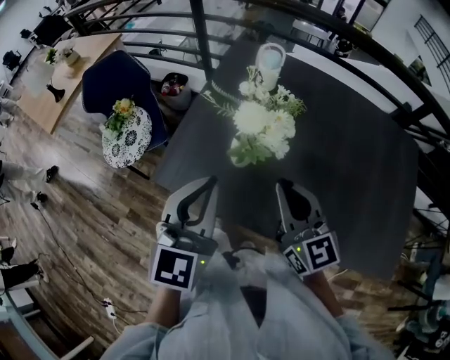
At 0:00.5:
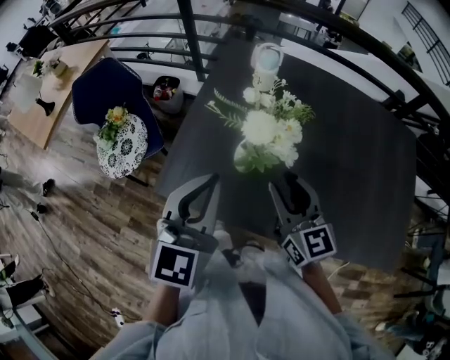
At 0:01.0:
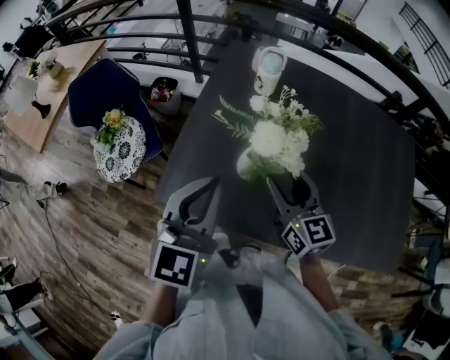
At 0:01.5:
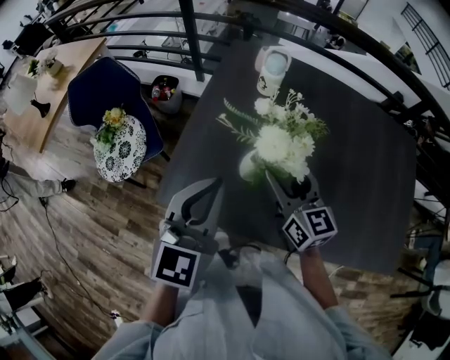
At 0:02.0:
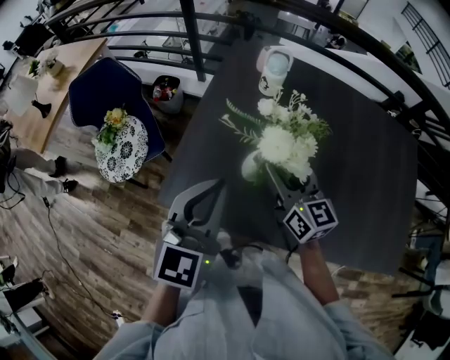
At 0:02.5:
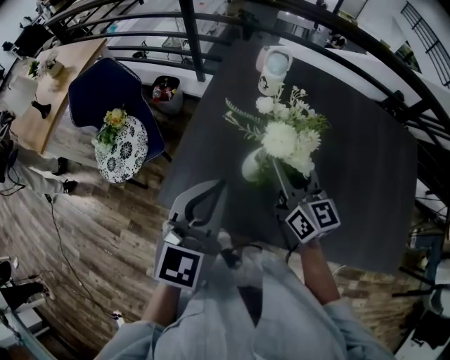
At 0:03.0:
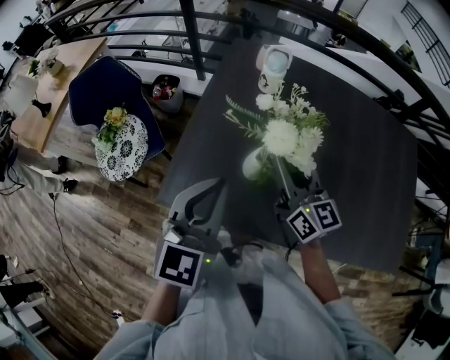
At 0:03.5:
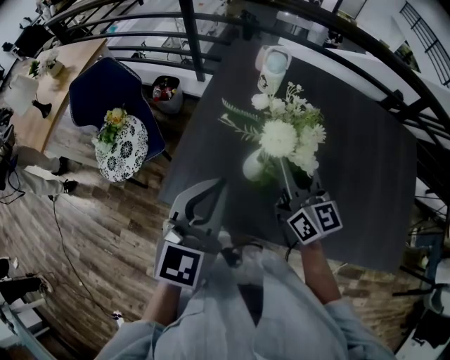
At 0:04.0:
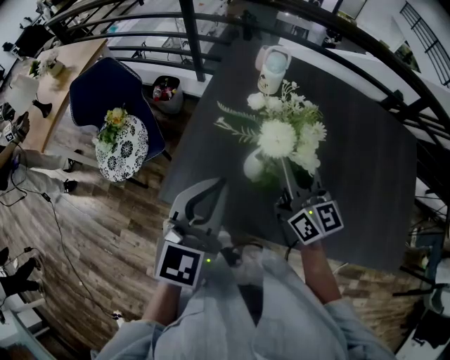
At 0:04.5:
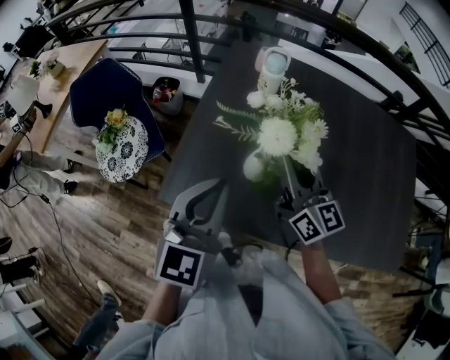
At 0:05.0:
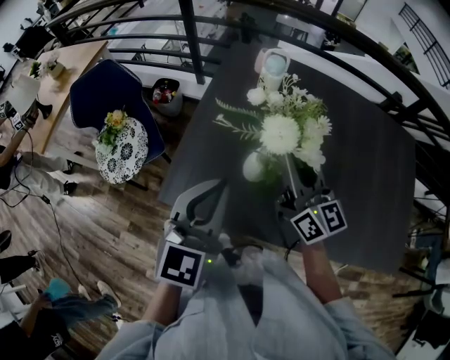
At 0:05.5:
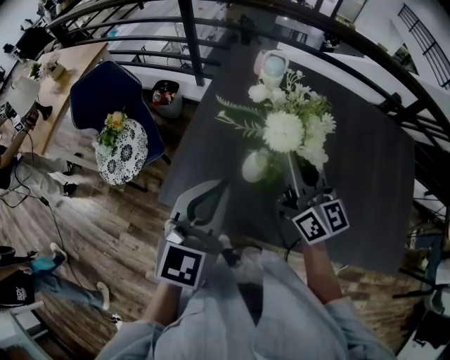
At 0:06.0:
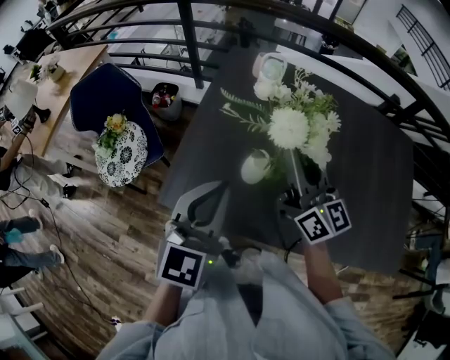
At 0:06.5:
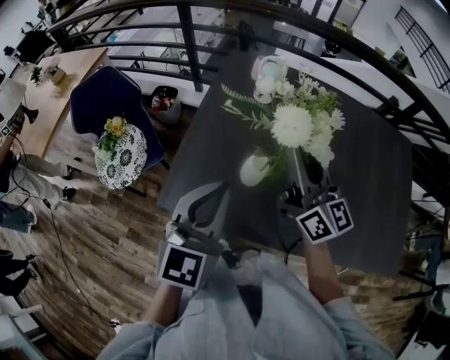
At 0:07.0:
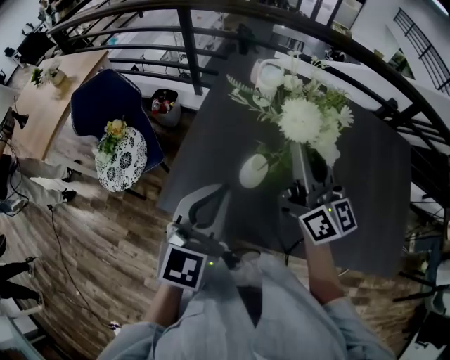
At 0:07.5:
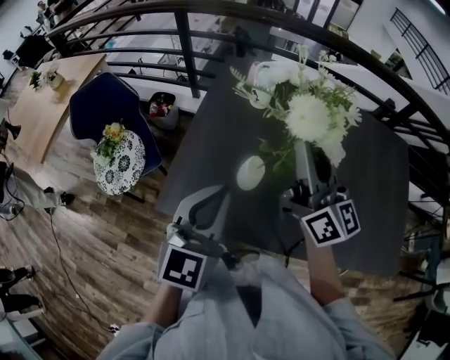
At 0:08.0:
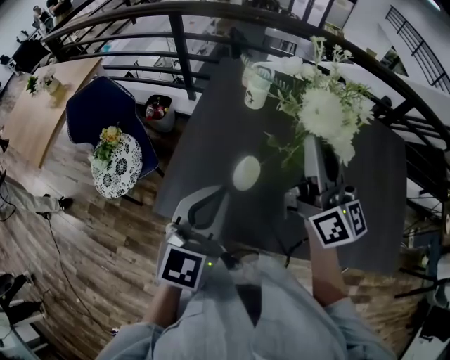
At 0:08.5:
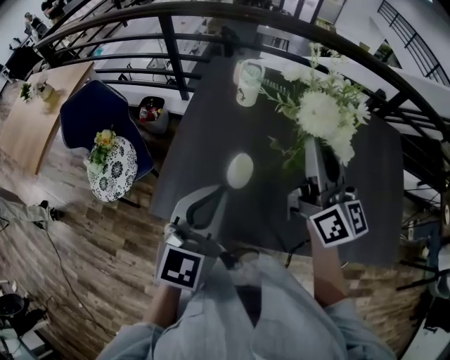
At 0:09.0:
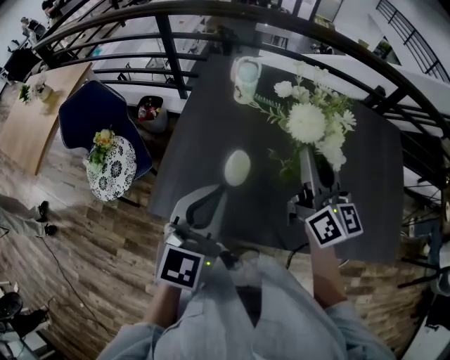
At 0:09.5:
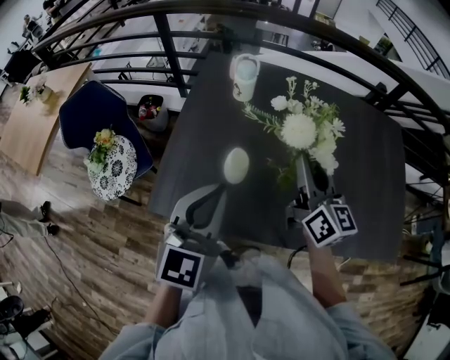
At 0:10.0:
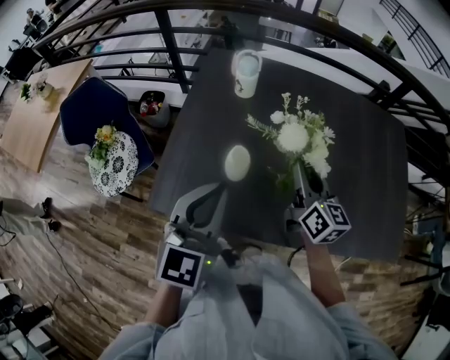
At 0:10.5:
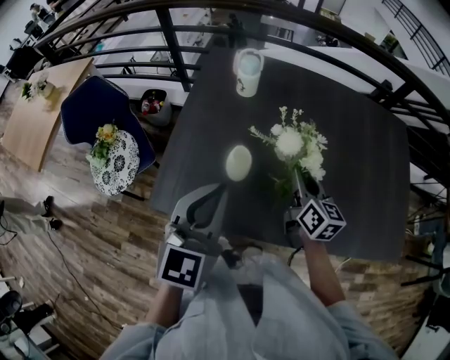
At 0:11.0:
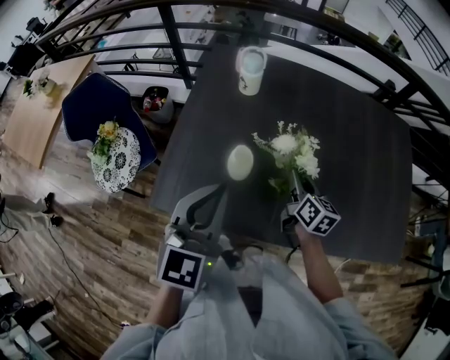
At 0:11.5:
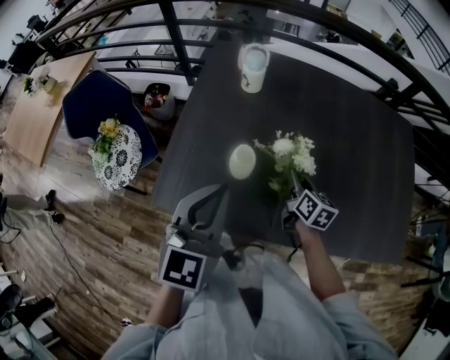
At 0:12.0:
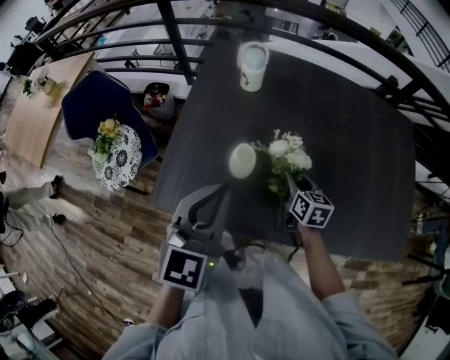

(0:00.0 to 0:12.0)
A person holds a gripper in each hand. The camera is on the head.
0:00.0 - 0:02.0: The left gripper is displaced forward by approximately 5 cm. The right gripper heads forward and downward, covering about 10 cm, and opens its fingers.
0:02.0 - 0:04.0: The right gripper closes its fingers.
0:04.0 - 0:06.0: The grippers make only small movements.
0:06.0 - 0:08.0: The right gripper shifts roughly 10 cm upward.
0:08.0 - 0:10.0: The right gripper is displaced downward and to the right by some 20 cm, and rotates approximately 30 degrees.
0:10.0 - 0:12.0: The right gripper travels downward by about 15 cm, and turns by about 30 degrees.

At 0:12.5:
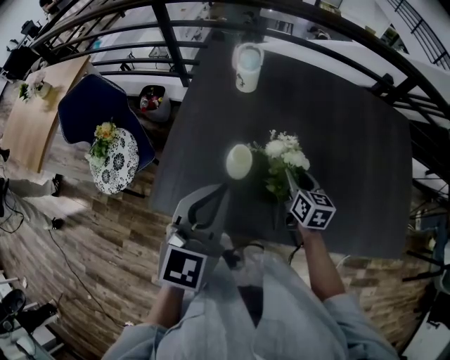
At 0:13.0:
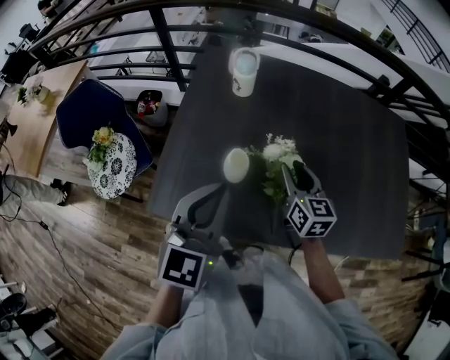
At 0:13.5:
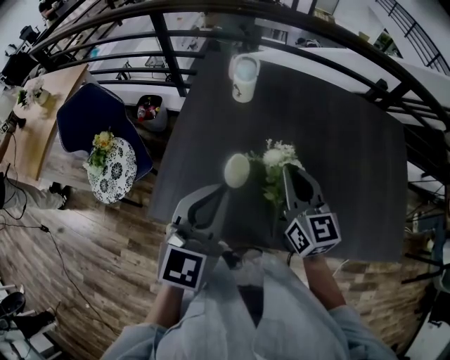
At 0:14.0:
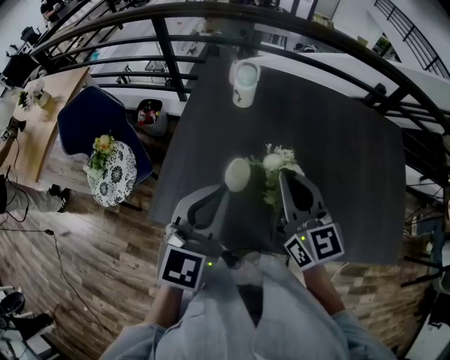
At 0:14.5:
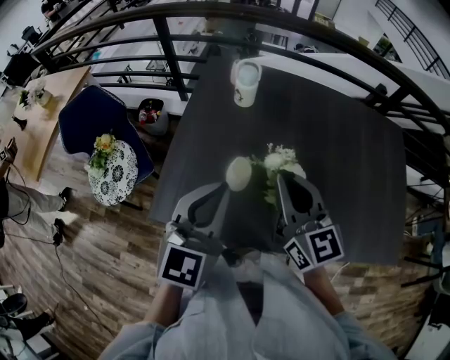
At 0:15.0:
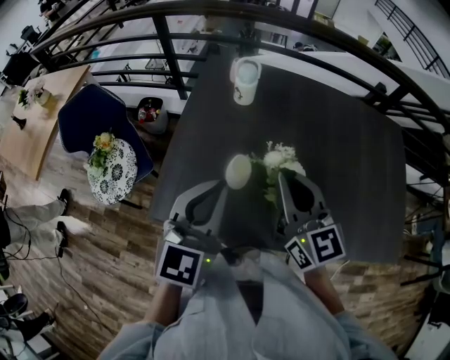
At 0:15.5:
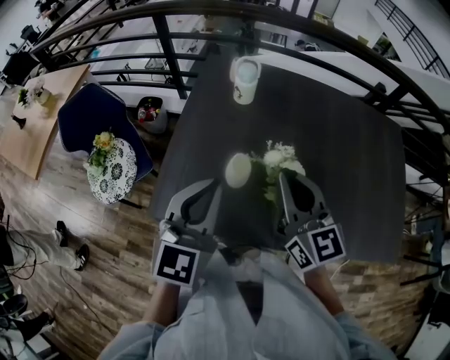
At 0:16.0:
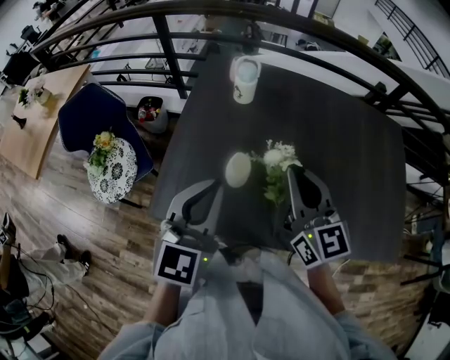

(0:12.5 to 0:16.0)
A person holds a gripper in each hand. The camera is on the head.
0:12.5 - 0:14.5: The right gripper is displaced upward and to the left by approximately 25 cm, changes its angle by approximately 30 degrees, and closes its fingers.
0:14.5 - 0:16.0: There are only small adjustments of the grippers.

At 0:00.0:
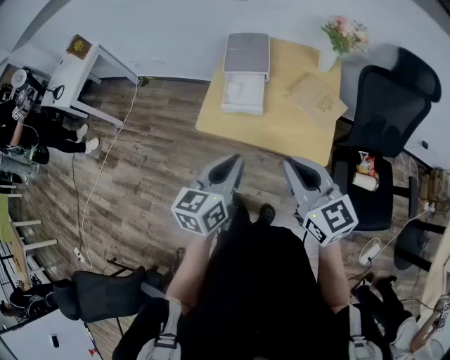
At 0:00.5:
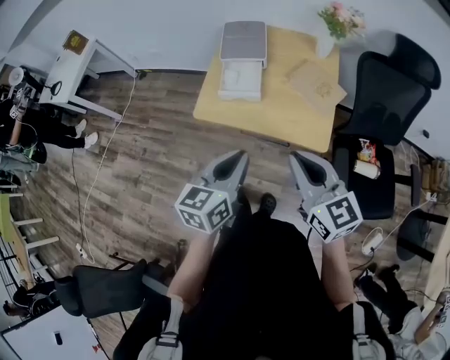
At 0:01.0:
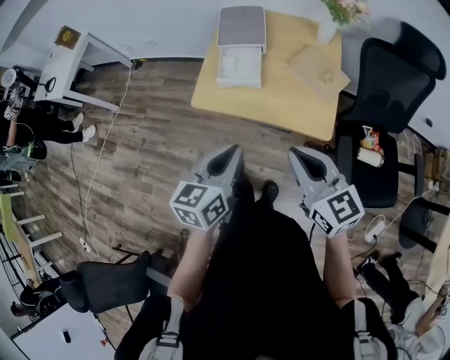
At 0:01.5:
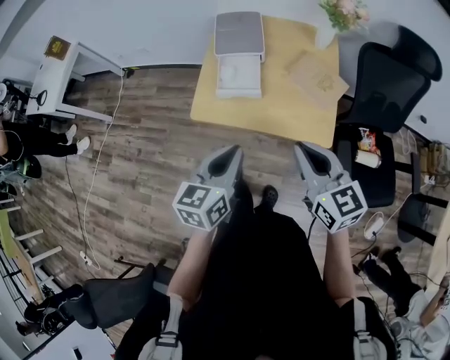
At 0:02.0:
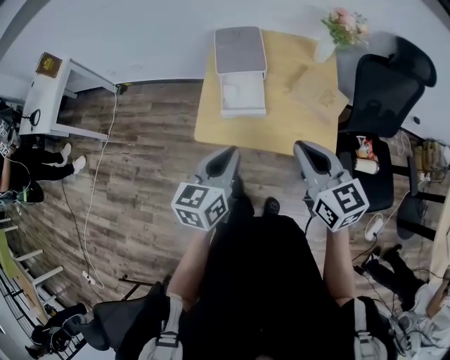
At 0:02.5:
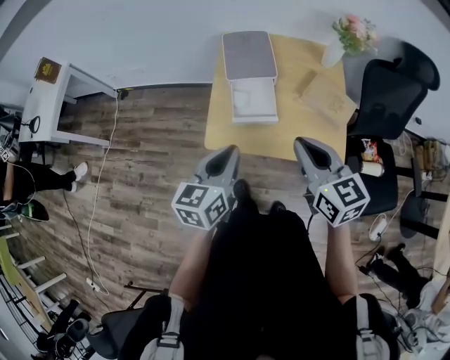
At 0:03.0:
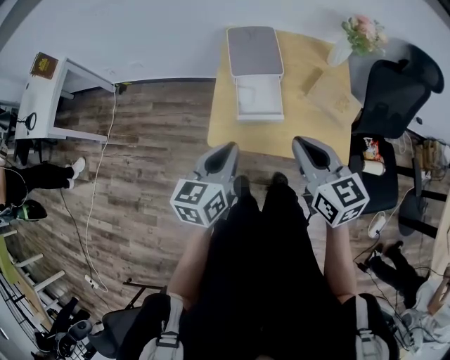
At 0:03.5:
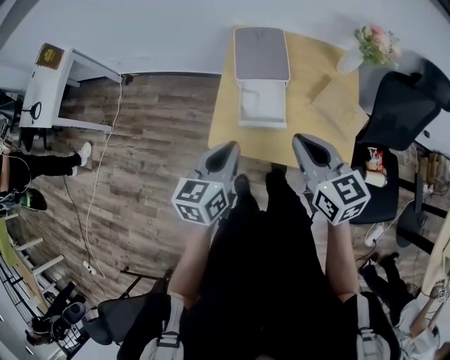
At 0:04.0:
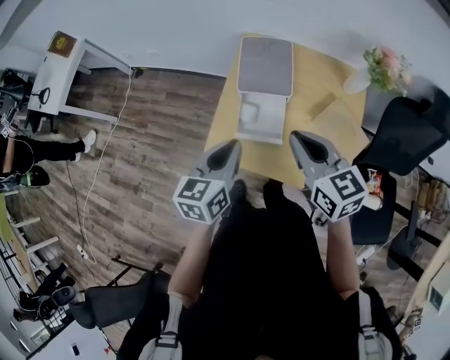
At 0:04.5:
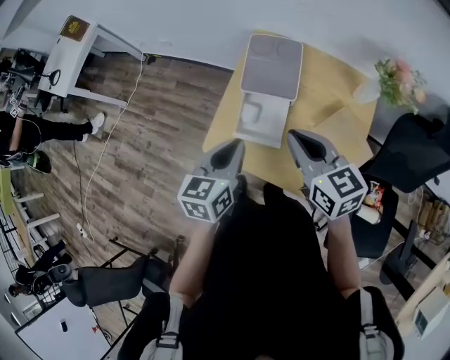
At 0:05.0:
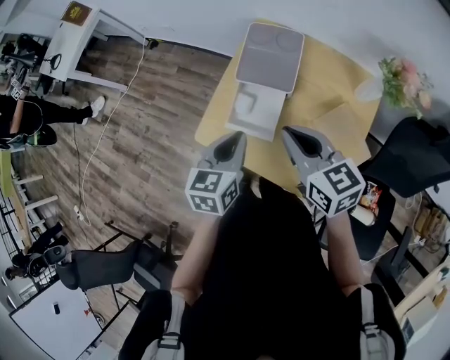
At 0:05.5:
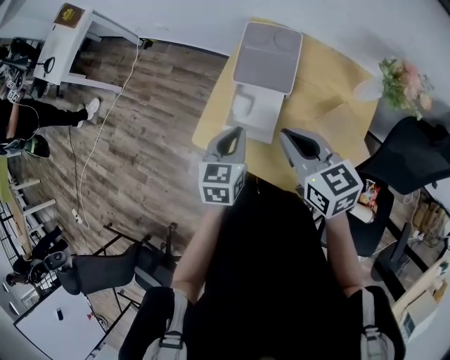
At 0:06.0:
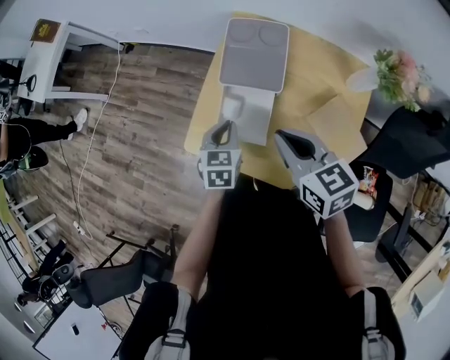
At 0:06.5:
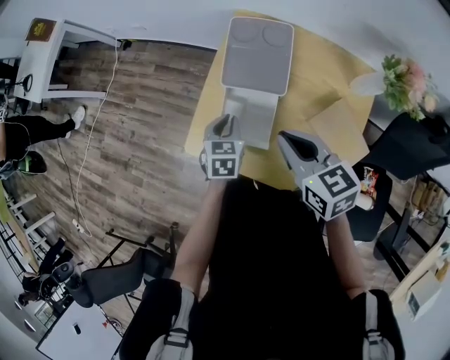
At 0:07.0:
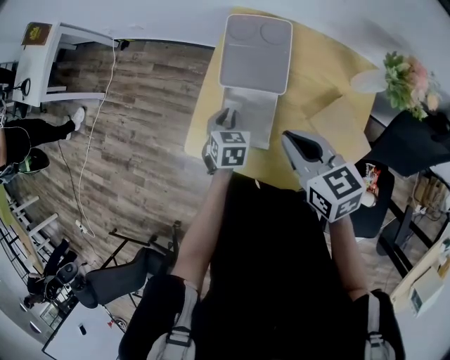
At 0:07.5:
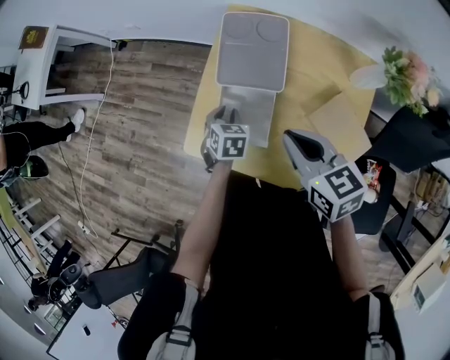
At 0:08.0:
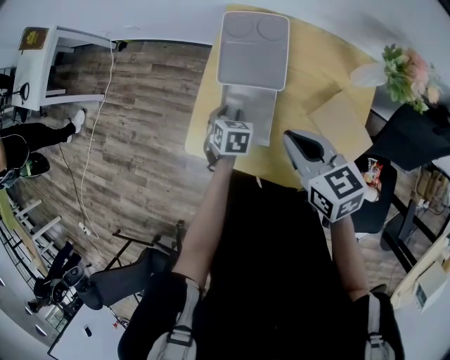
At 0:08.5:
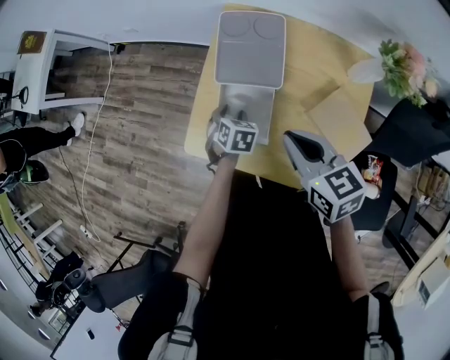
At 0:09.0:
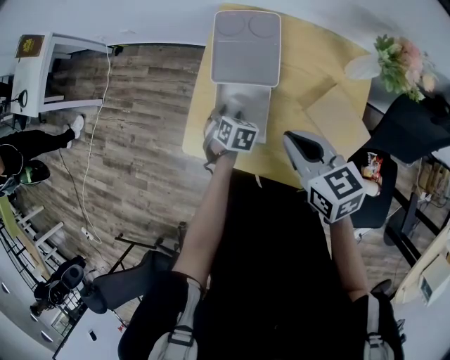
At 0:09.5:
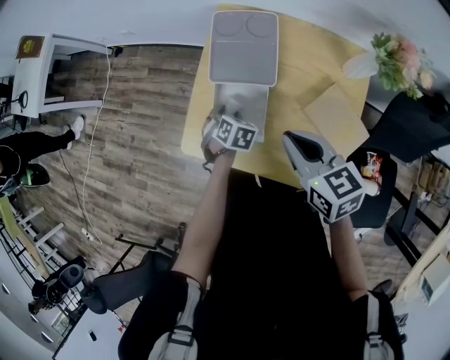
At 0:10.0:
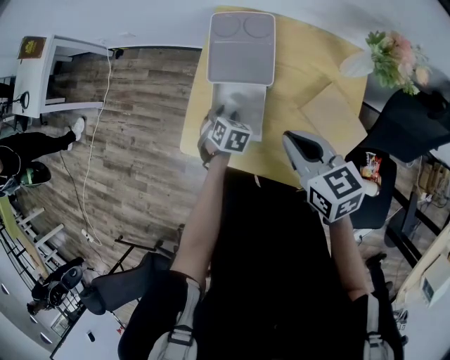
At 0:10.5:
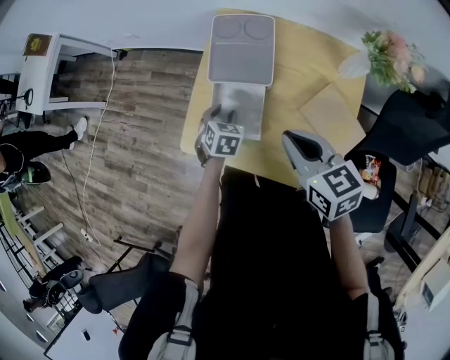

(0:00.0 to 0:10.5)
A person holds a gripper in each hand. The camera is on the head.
0:00.0 - 0:02.0: The left gripper shifts approximately 10 cm forward and to the left, while the right gripper shifts about 10 cm forward.
0:02.0 - 0:04.0: Both grippers move forward, roughly 15 cm.
0:04.0 - 0:06.5: The left gripper is displaced downward and forward by some 25 cm, and turns by roughly 30 degrees; the right gripper shifts approximately 10 cm downward and forward.
0:06.5 - 0:08.5: The left gripper is displaced downward by some 5 cm, turns by approximately 20 degrees, and opens.
0:08.5 - 0:10.5: There are only small adjustments of the grippers.

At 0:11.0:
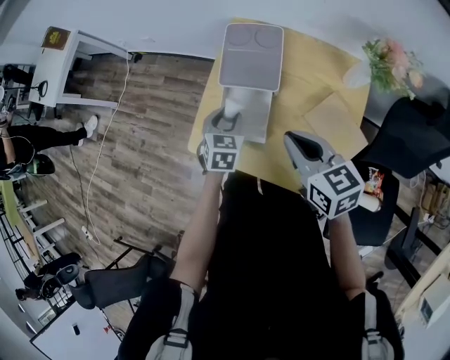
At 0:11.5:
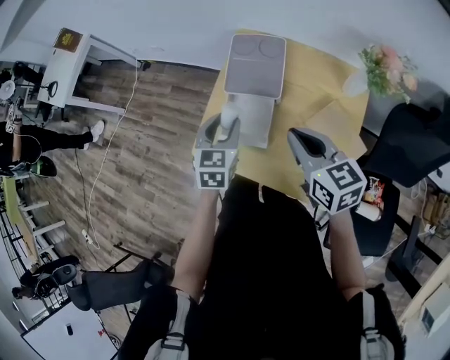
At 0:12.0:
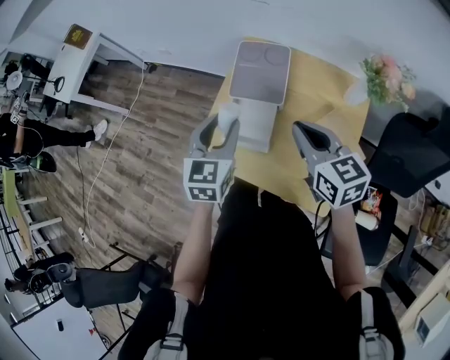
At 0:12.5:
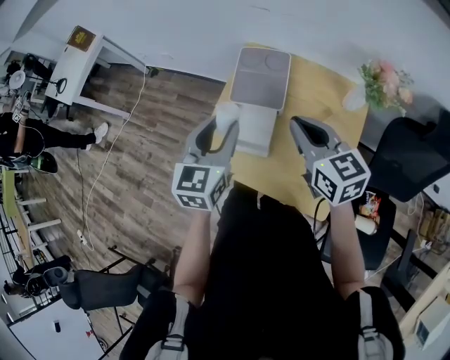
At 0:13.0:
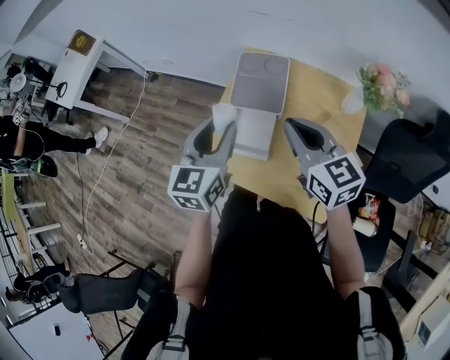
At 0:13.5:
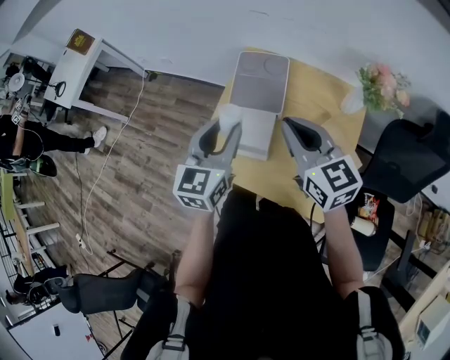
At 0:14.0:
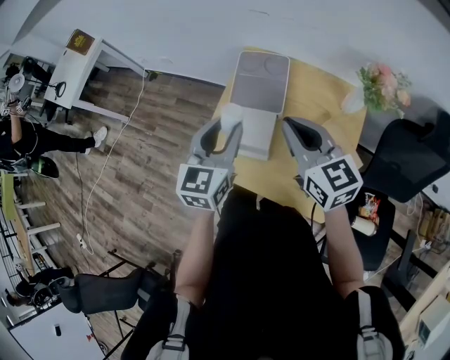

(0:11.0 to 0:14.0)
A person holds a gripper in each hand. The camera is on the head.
0:11.0 - 0:12.5: The right gripper shifts roughly 5 cm upward; the left gripper is displaced upward by roughly 20 cm, and changes its angle by roughly 30 degrees.
0:12.5 - 0:14.0: The grippers stay close to where they were, moving slightly.
